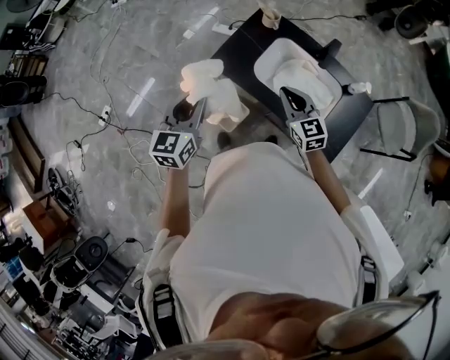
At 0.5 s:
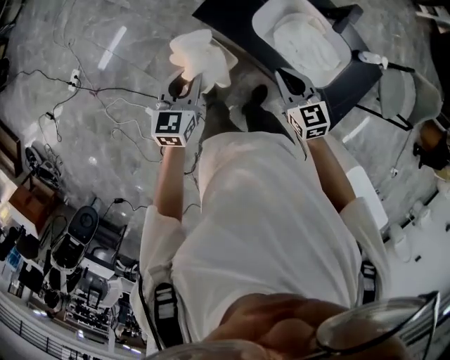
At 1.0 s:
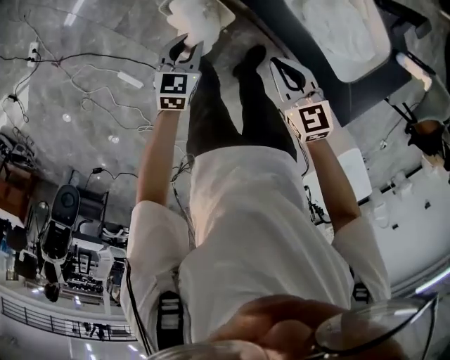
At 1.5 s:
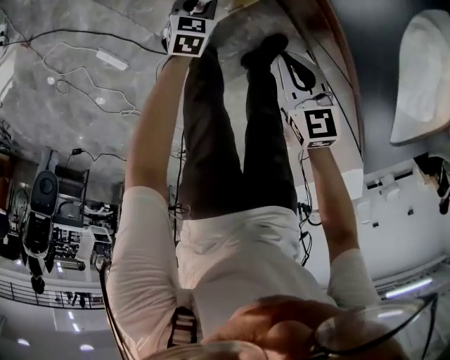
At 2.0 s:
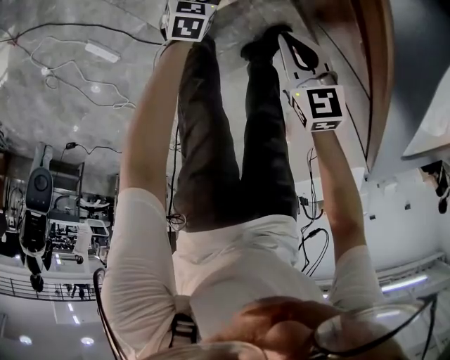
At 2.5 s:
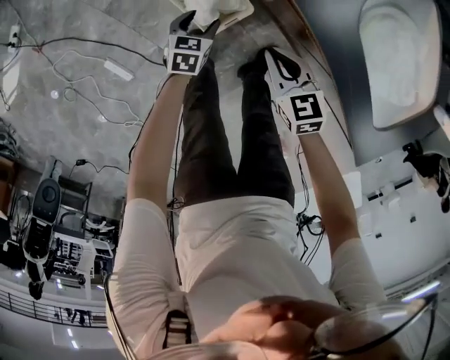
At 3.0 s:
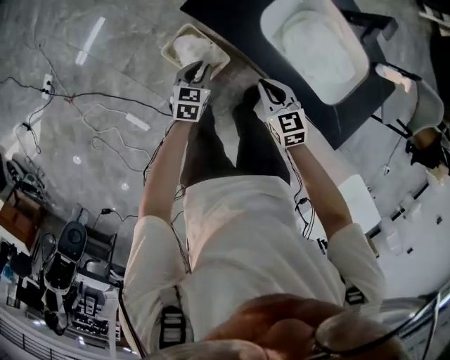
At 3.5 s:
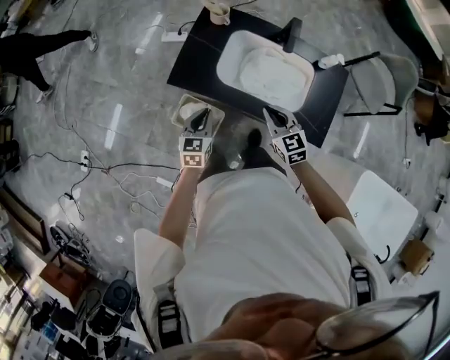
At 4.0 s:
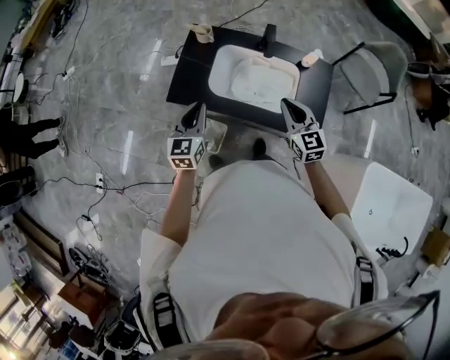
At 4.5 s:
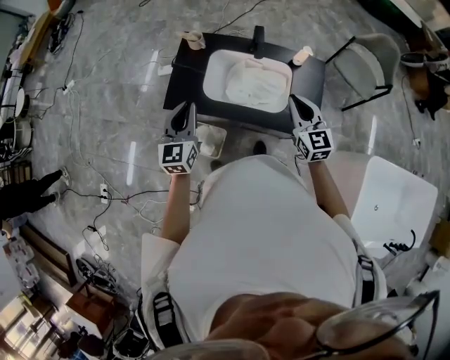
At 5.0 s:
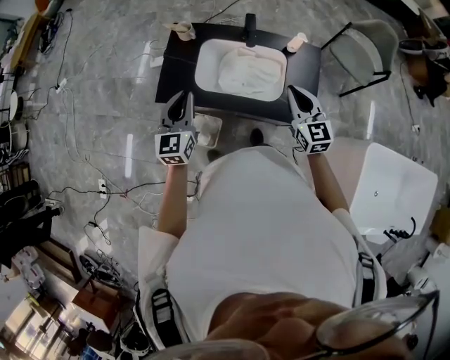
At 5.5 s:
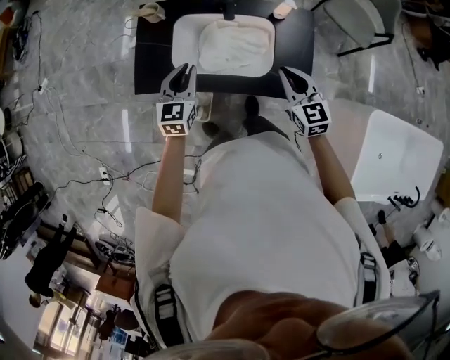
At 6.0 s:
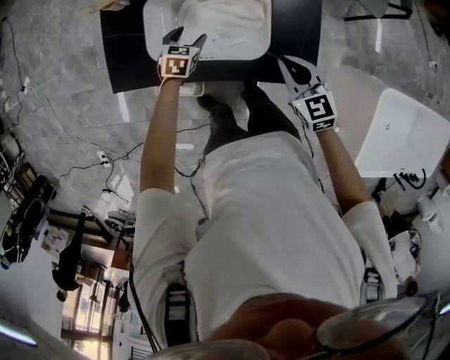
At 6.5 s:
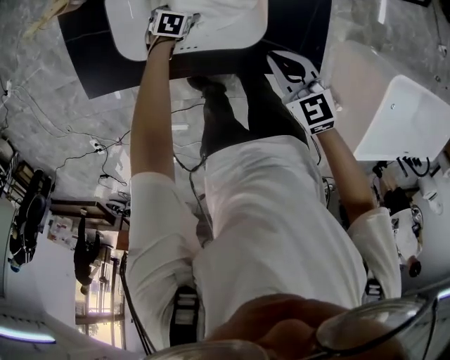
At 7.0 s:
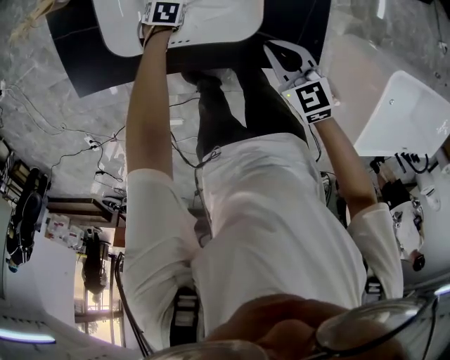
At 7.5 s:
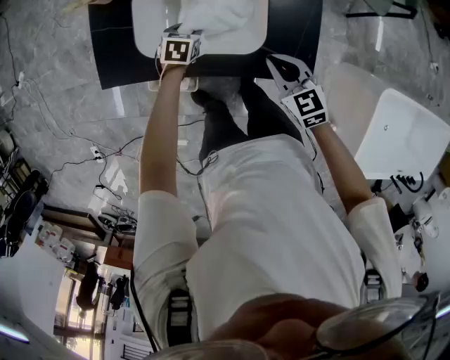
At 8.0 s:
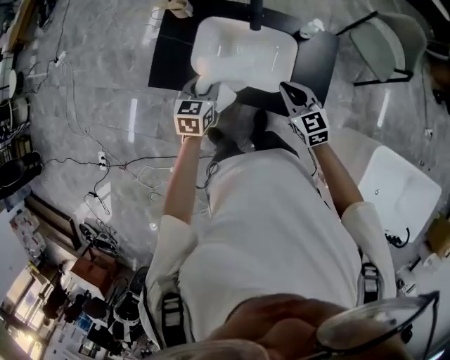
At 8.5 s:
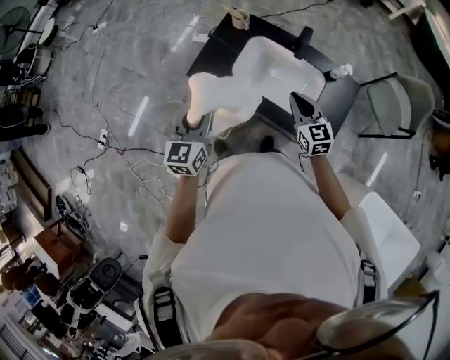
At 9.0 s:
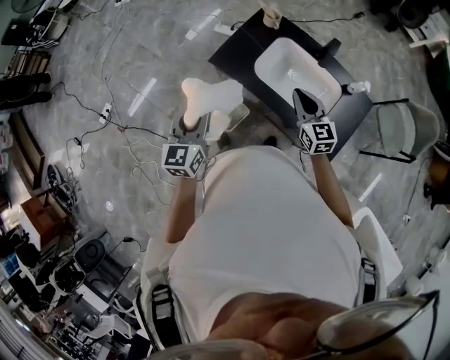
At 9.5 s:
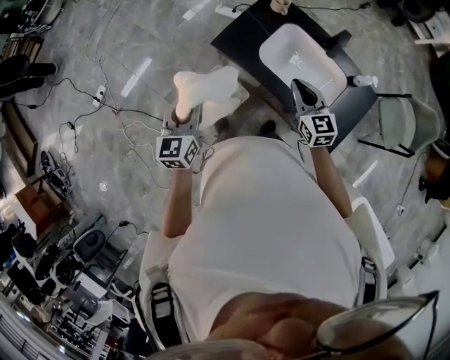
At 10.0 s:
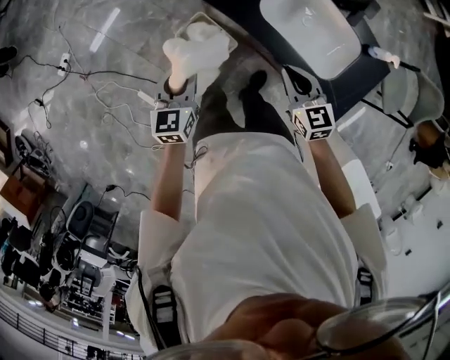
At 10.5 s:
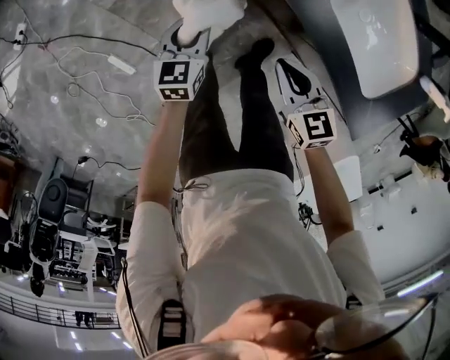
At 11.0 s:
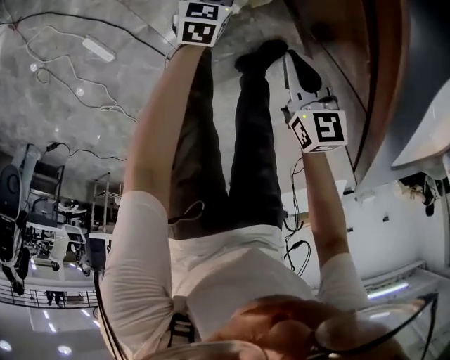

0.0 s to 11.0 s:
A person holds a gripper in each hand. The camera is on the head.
0.0 to 2.0 s: The grippers both shift downward by about 80 cm. The right gripper tips its fingers downward by some 30 degrees; the left gripper tips its fingers downward by roughly 40 degrees, and opens its fingers.
2.0 to 3.5 s: Both grippers travel together upward, approximately 60 cm. The right gripper swivels roughly 40 degrees. The left gripper changes its angle by roughly 40 degrees, and closes up.
3.5 to 5.5 s: The left gripper heads to the right, forward and upward, covering roughly 25 cm. Meanwhile the right gripper travels to the right by some 20 cm, and turns by some 20 degrees.
5.5 to 7.5 s: The right gripper travels downward by roughly 15 cm; the left gripper shifts about 30 cm downward, tilts its fingers roughly 40 degrees downward, and opens, then closes again.
7.5 to 9.0 s: The right gripper shifts by roughly 30 cm, and swivels approximately 30 degrees. Meanwhile the left gripper goes roughly 40 cm upward, and tips its fingers upward by about 50 degrees.
9.0 to 11.0 s: The grippers both shift downward by approximately 70 cm. The right gripper tips its fingers downward by about 30 degrees; the left gripper points its fingers about 40 degrees further downward.

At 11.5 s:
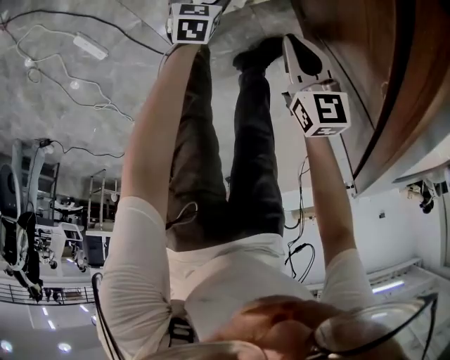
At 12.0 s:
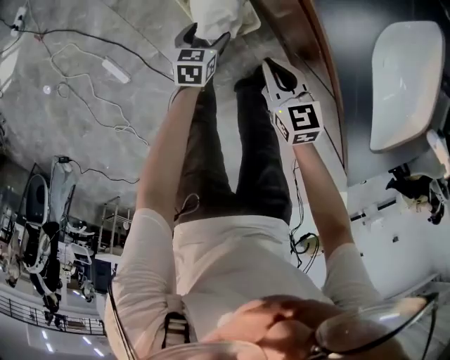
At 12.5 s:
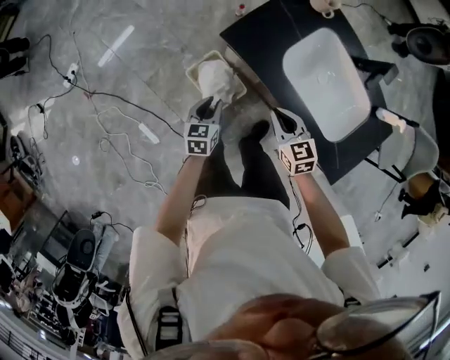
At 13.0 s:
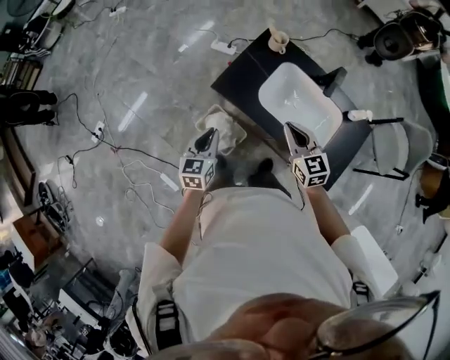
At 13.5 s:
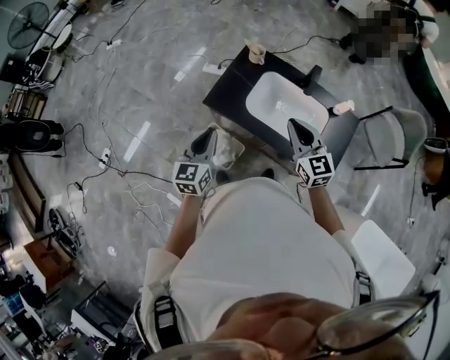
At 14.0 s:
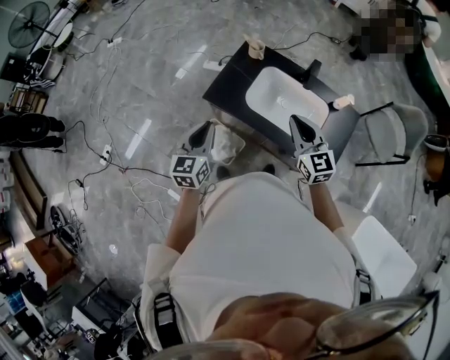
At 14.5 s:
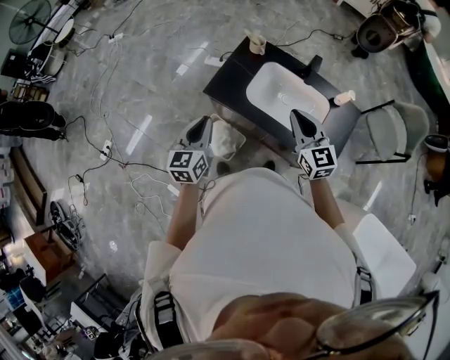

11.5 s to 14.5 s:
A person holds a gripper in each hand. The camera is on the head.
11.5 to 13.0 s: Both grippers move upward, about 70 cm. The left gripper angles its fingers upward, by roughly 30 degrees, and closes its fingers. The right gripper turns by some 40 degrees.
13.0 to 14.5 s: The right gripper moves upward and to the right, approximately 15 cm; the left gripper is displaced upward by about 15 cm.

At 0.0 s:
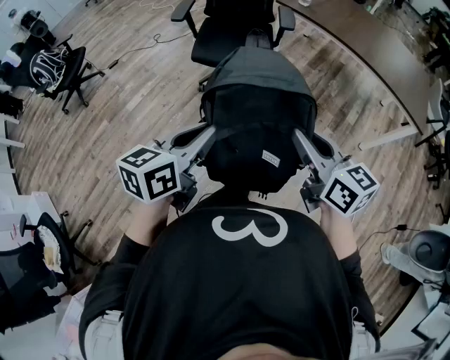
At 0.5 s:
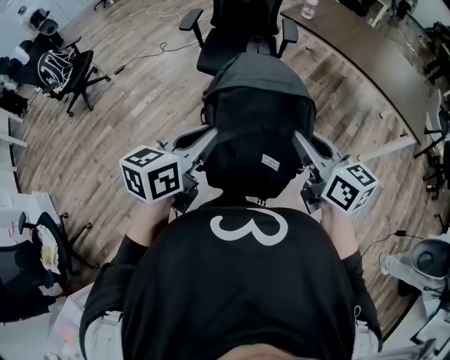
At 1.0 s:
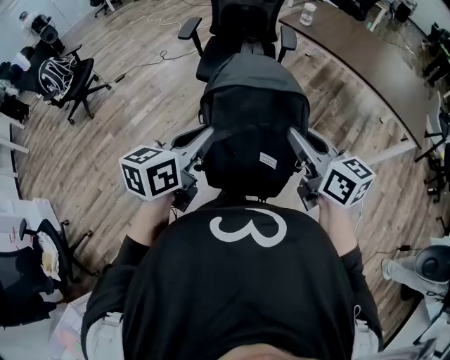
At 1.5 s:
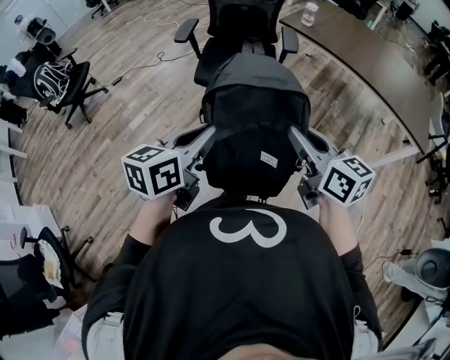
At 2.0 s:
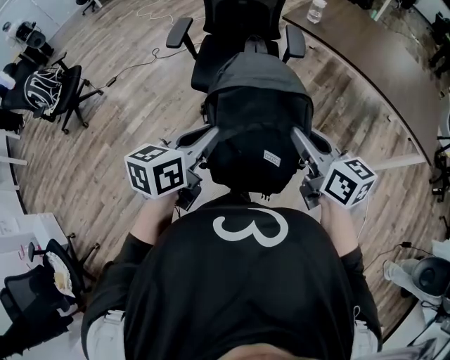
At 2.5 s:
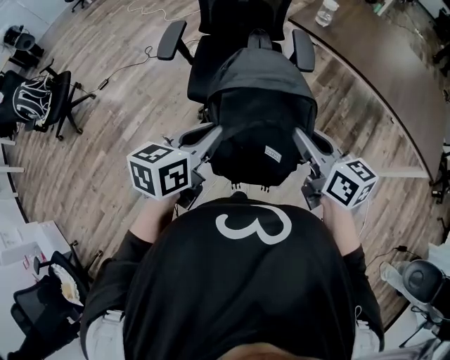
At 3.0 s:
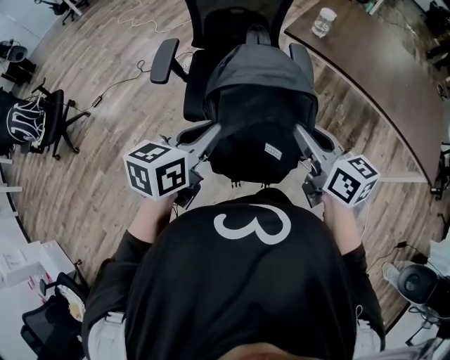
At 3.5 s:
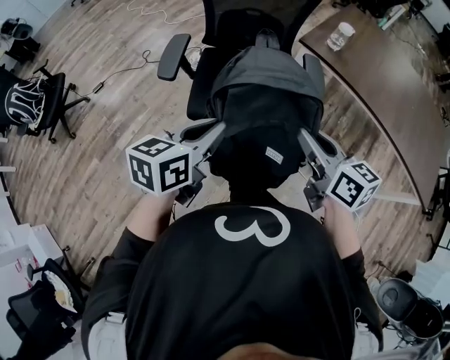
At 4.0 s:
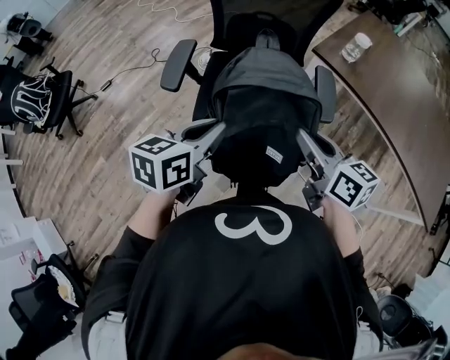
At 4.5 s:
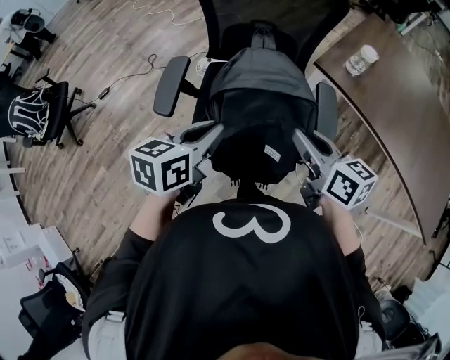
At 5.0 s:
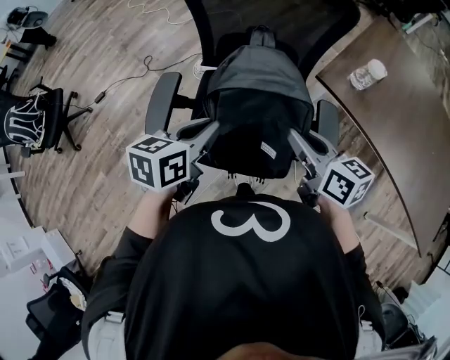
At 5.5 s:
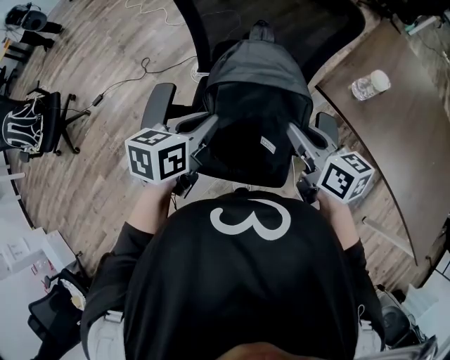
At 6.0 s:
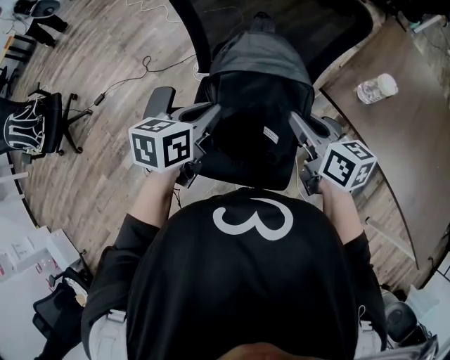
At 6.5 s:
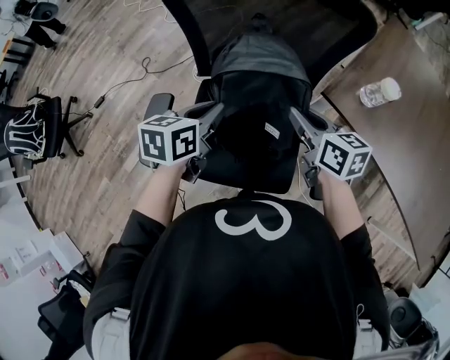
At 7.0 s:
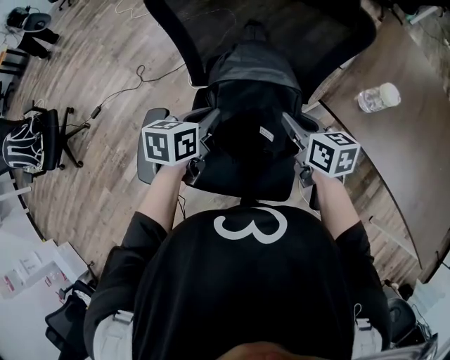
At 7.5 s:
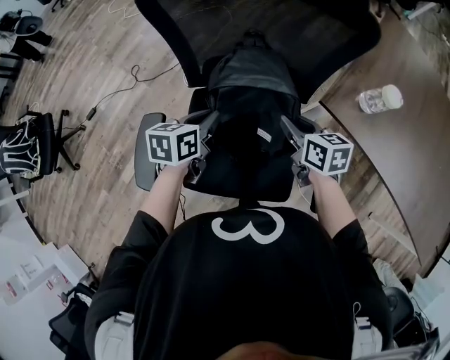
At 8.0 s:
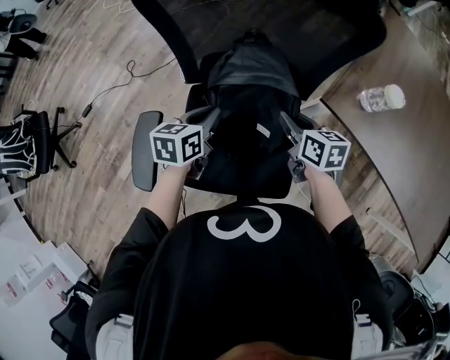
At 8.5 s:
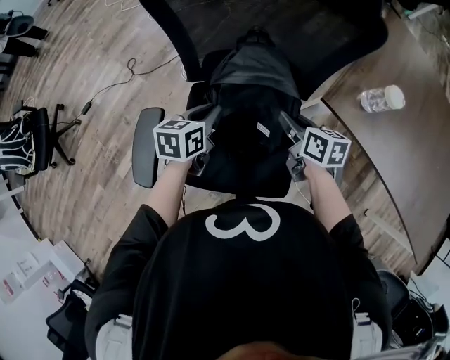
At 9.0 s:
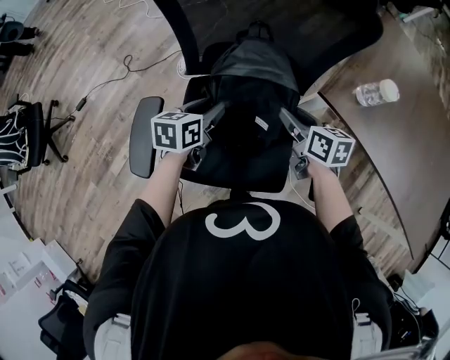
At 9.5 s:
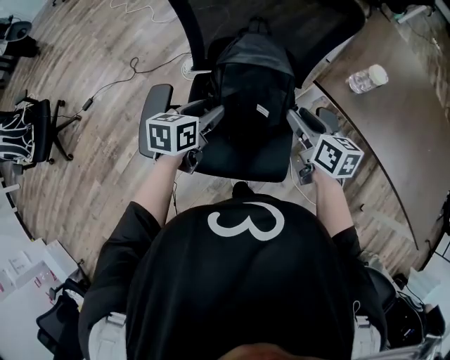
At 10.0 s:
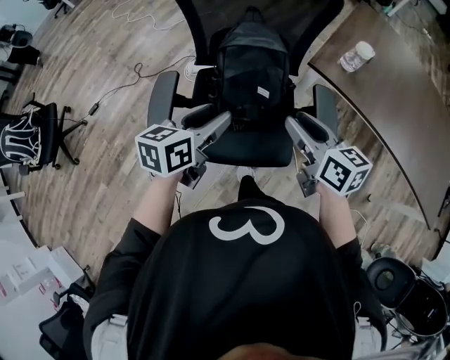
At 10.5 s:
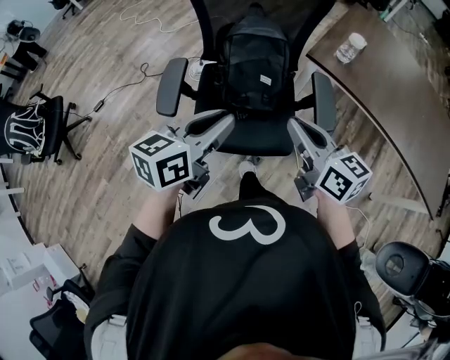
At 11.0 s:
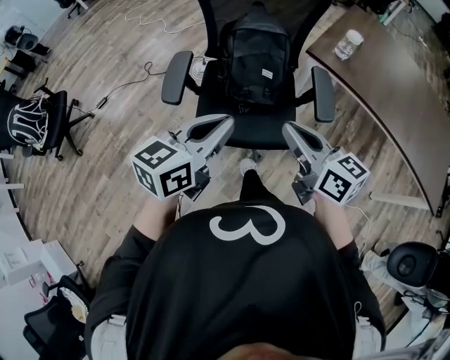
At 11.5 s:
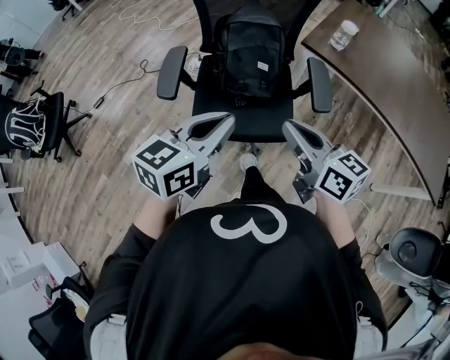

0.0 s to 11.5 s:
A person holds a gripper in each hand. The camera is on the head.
0.0 to 2.0 s: Both grippers travel together forward, roughly 15 cm.
2.0 to 4.0 s: The two grippers go approximately 30 cm forward.
4.0 to 6.0 s: The grippers both shift forward by roughly 25 cm.
6.0 to 7.5 s: Both grippers move downward and forward, about 10 cm.
7.5 to 9.5 s: The left gripper shifts about 5 cm backward, and opens its fingers. Meanwhile the right gripper goes roughly 10 cm backward and upward, and opens up.
9.5 to 11.5 s: The left gripper goes roughly 30 cm backward and upward, swivels roughly 30 degrees, and closes, while the right gripper is displaced backward by roughly 30 cm, and closes up.

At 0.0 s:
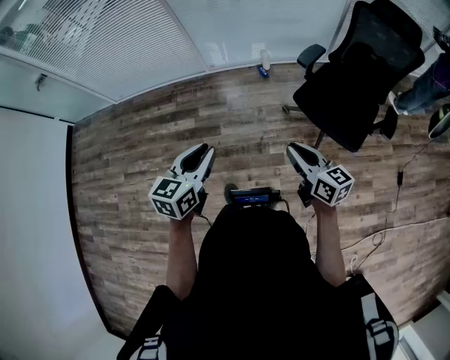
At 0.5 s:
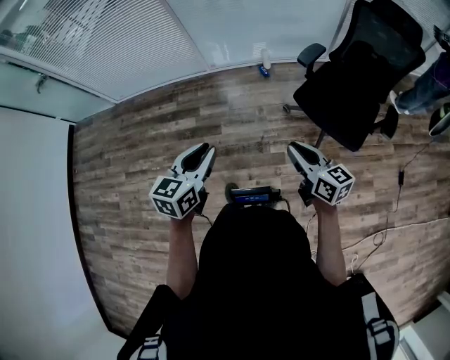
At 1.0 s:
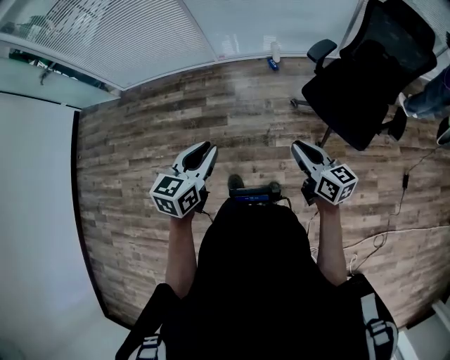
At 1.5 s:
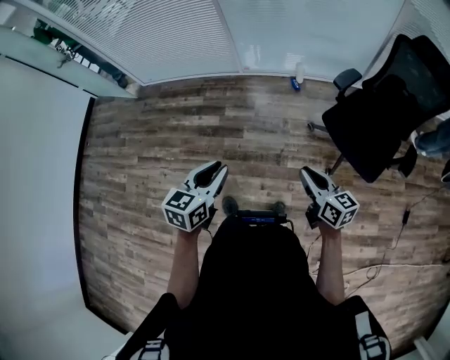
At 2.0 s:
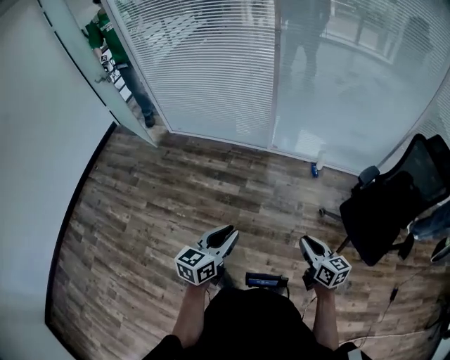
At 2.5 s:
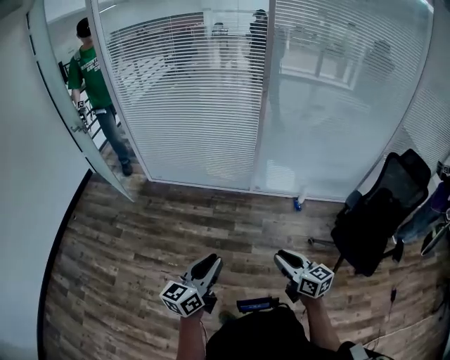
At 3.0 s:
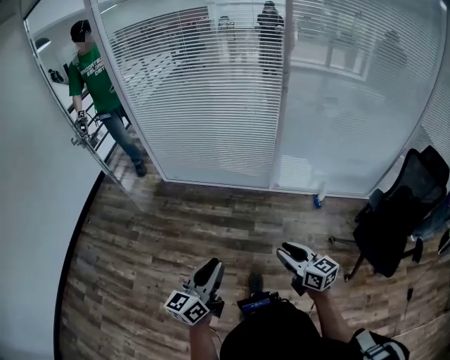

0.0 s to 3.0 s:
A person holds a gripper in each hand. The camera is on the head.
0.0 to 1.5 s: The left gripper shifts by about 5 cm. Meanwhile the right gripper shifts by roughly 5 cm.
1.5 to 3.0 s: The right gripper heads to the left and forward, covering roughly 40 cm, while the left gripper heads to the left, covering about 40 cm, and swivels roughly 30 degrees.